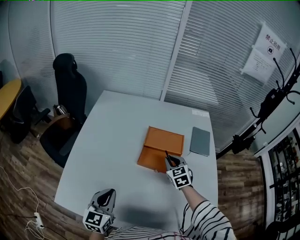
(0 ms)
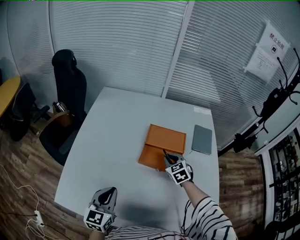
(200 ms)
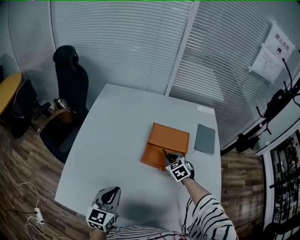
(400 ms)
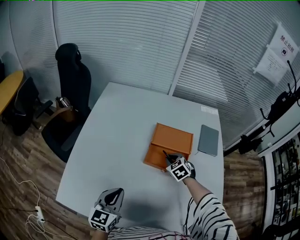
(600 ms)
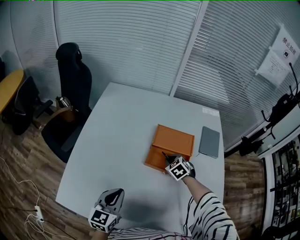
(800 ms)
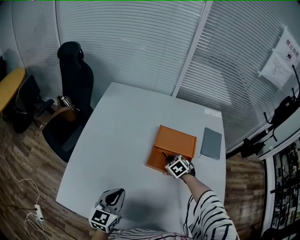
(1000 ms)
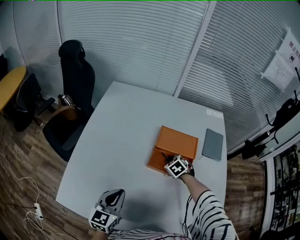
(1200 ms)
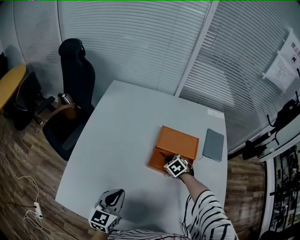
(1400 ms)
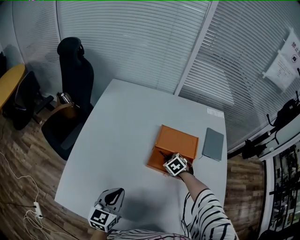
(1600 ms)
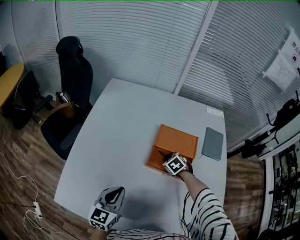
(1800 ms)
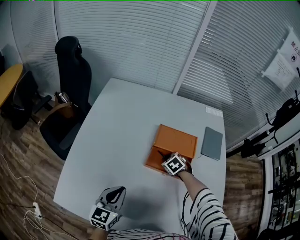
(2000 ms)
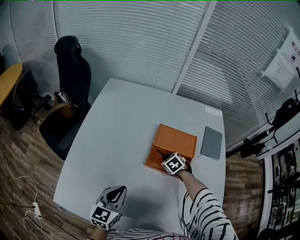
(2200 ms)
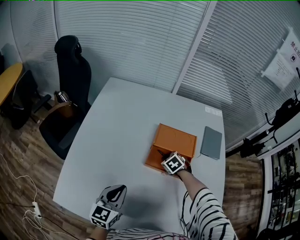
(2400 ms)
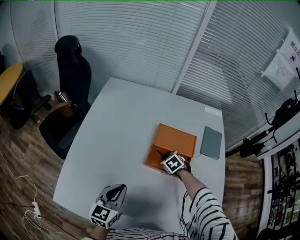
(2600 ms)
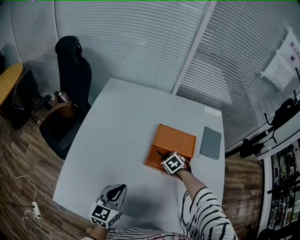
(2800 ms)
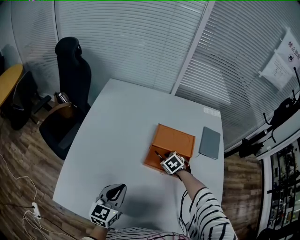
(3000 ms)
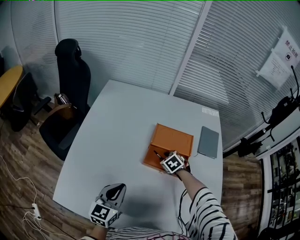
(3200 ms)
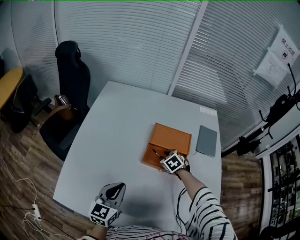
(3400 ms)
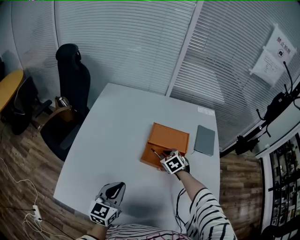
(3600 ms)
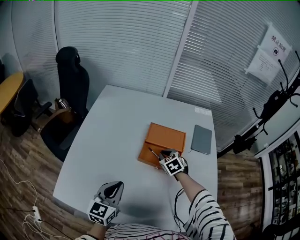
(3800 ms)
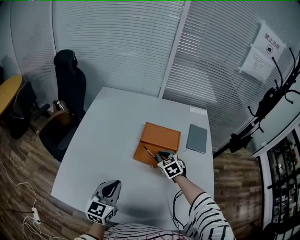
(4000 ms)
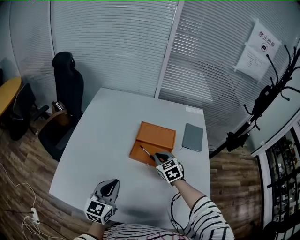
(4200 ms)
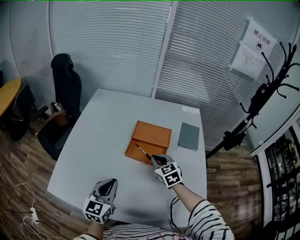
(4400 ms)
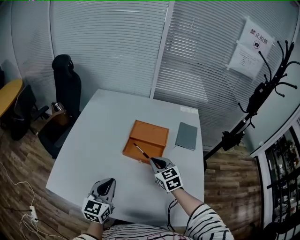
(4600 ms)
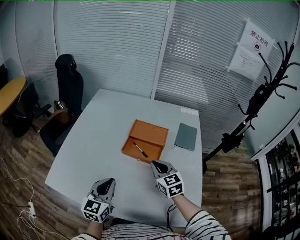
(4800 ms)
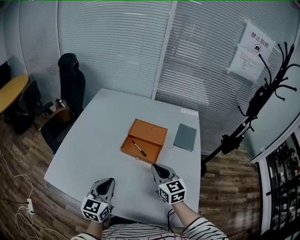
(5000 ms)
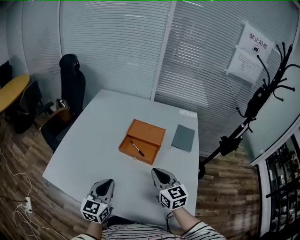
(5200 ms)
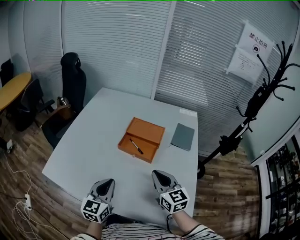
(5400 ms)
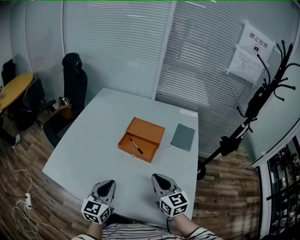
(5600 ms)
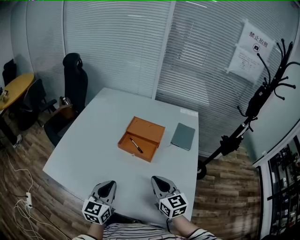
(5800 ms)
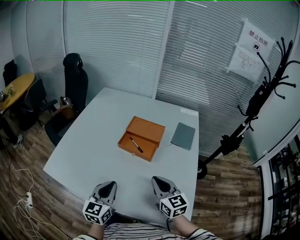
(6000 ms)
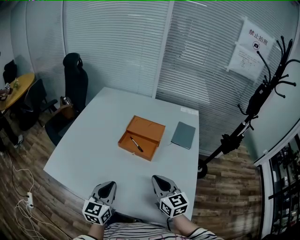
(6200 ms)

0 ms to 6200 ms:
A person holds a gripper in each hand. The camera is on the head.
0 ms to 1600 ms: The left gripper ends up approximately 5 cm from where it was. Meanwhile the right gripper shifts about 15 cm downward and forward, and turns by about 30 degrees.
1600 ms to 3200 ms: The grippers move only a little.
3200 ms to 4600 ms: The right gripper goes roughly 20 cm upward and backward, angles its fingers upward, by approximately 30 degrees, and closes up, while the left gripper goes approximately 10 cm backward, to the right and upward.
4600 ms to 6200 ms: The left gripper heads backward and to the right, covering approximately 10 cm; the right gripper travels backward by about 15 cm.

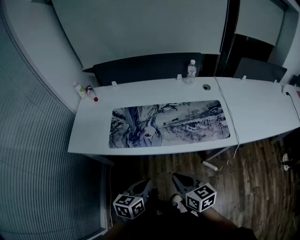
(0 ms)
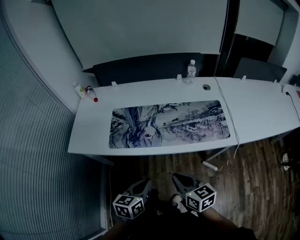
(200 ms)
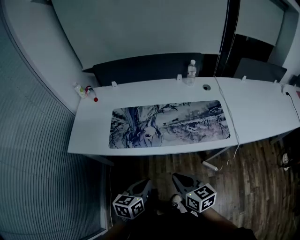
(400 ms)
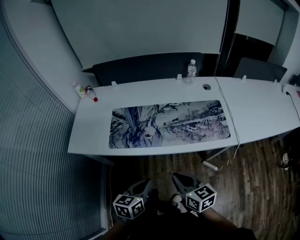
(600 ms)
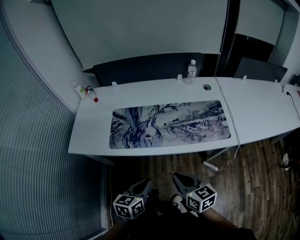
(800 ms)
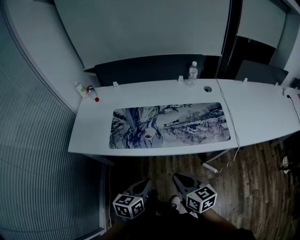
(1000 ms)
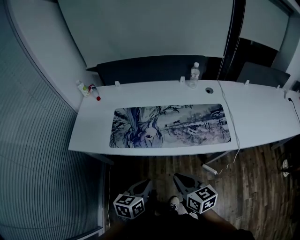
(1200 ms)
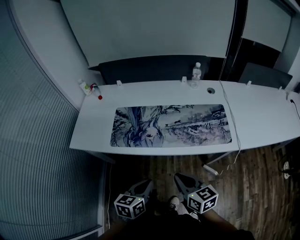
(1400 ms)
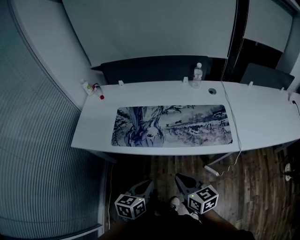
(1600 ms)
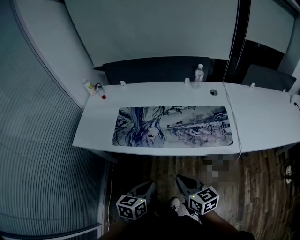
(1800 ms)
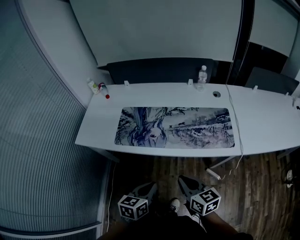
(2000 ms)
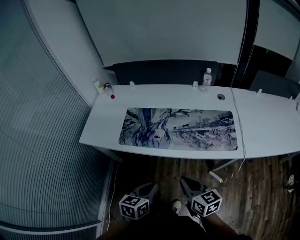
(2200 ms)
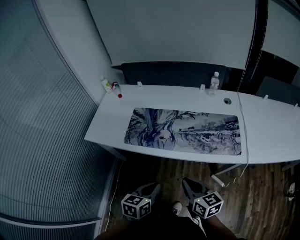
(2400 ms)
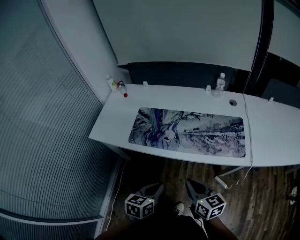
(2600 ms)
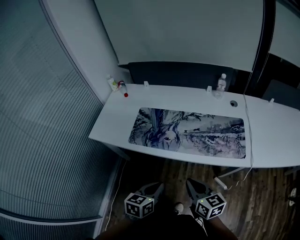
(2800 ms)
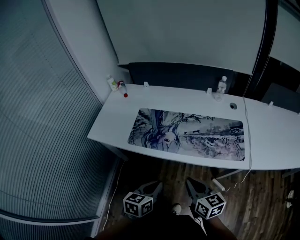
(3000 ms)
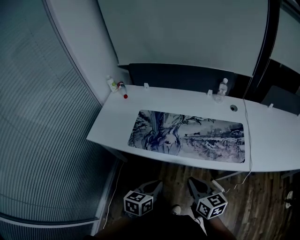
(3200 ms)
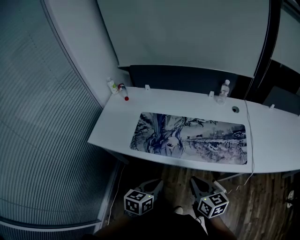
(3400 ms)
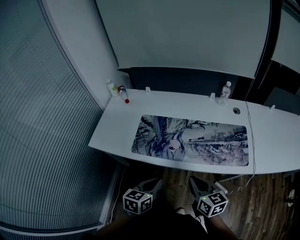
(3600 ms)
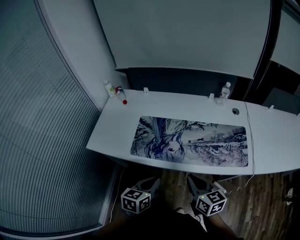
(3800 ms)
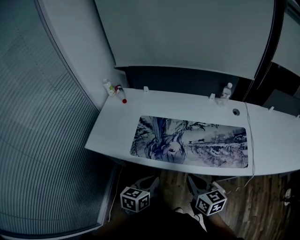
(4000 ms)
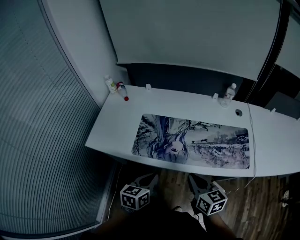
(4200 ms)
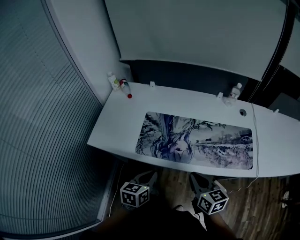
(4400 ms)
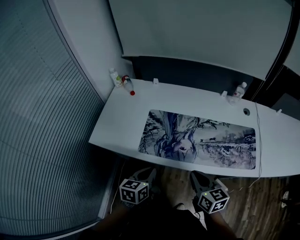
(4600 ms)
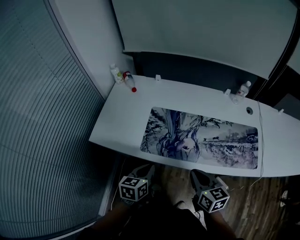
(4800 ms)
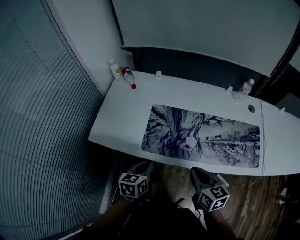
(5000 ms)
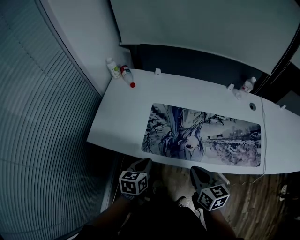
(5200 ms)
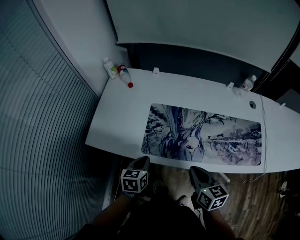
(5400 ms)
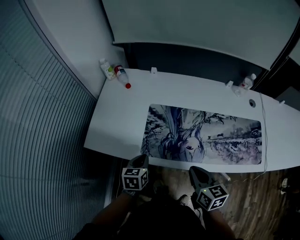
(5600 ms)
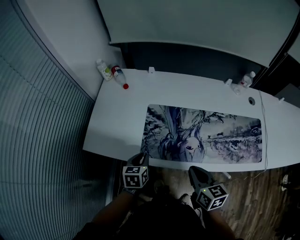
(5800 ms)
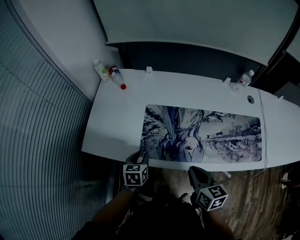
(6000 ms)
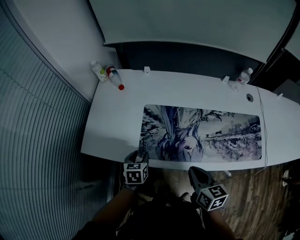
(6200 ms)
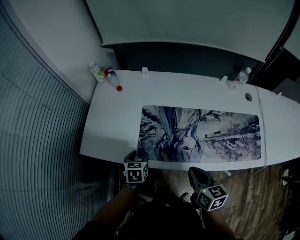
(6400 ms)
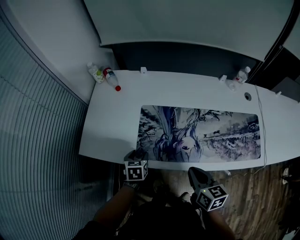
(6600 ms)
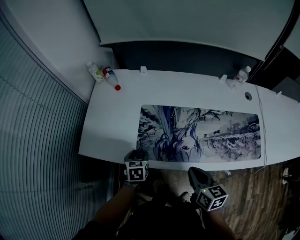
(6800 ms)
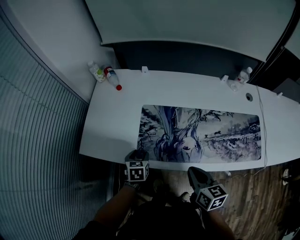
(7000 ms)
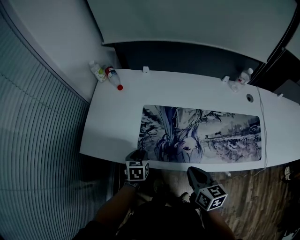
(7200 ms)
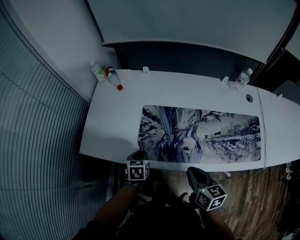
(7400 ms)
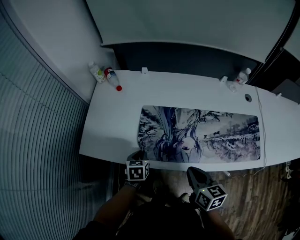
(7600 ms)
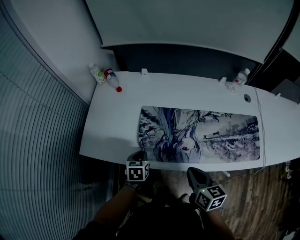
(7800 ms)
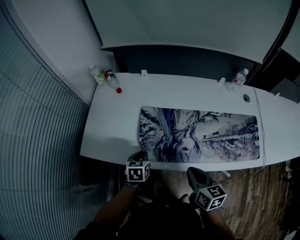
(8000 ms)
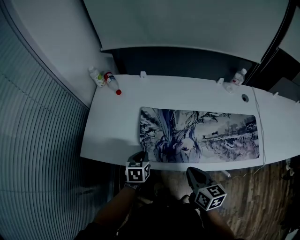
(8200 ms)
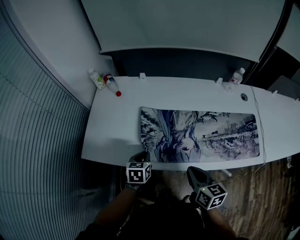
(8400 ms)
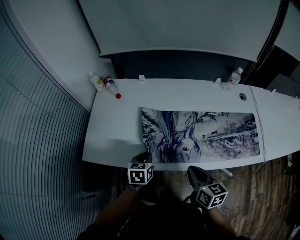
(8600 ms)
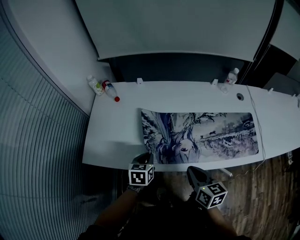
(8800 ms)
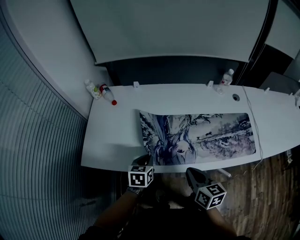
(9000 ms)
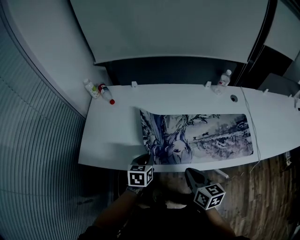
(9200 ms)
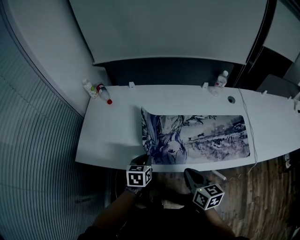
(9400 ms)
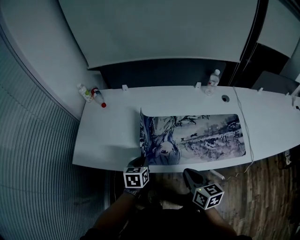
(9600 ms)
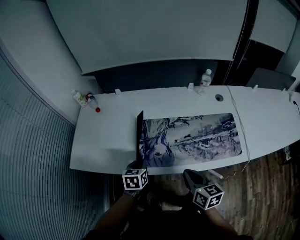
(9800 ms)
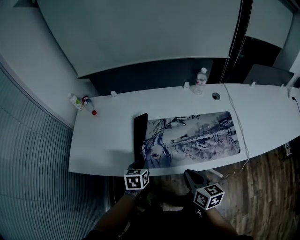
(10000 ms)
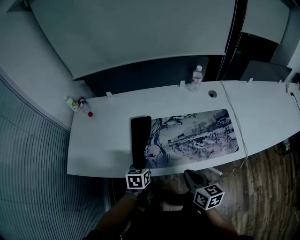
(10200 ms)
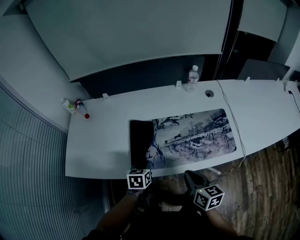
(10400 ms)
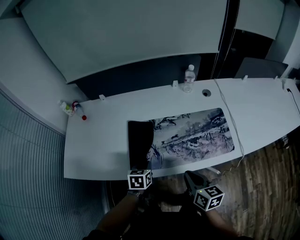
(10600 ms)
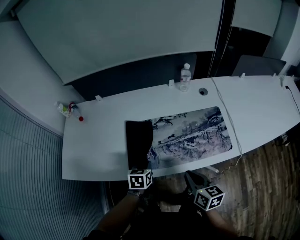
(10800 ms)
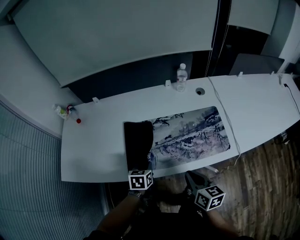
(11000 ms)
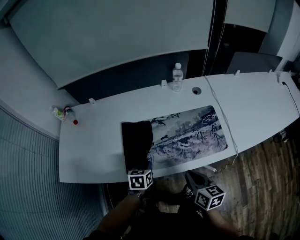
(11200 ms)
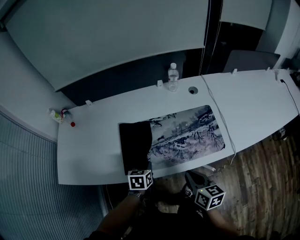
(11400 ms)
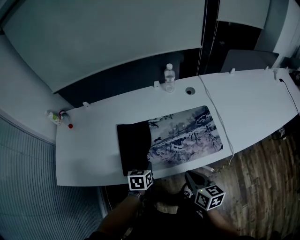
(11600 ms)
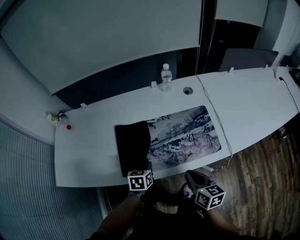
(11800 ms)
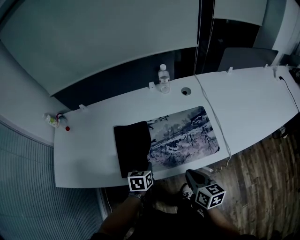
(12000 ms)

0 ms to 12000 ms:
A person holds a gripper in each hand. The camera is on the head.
0 ms to 3000 ms: The grippers move only a little.
3000 ms to 4400 ms: The two grippers go approximately 15 cm forward and to the left.
4400 ms to 6000 ms: The left gripper moves forward, downward and to the left, about 20 cm, and opens up, while the right gripper heads forward and to the left, covering about 10 cm.
6000 ms to 7600 ms: The left gripper opens, then closes again.
7600 ms to 9000 ms: The left gripper travels upward and to the right by about 10 cm.
9000 ms to 10400 ms: Both grippers move to the right, about 15 cm.
10400 ms to 12000 ms: The two grippers go roughly 15 cm to the right.

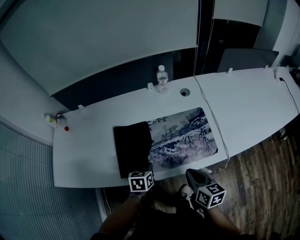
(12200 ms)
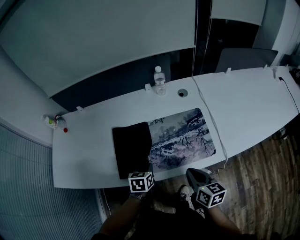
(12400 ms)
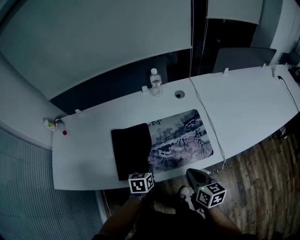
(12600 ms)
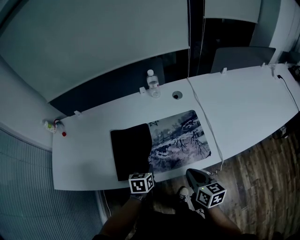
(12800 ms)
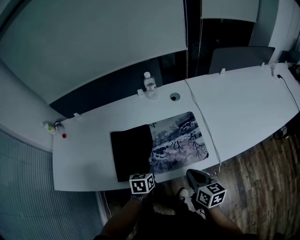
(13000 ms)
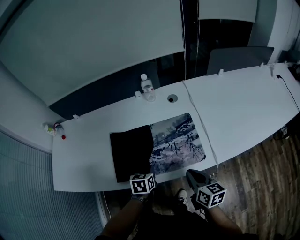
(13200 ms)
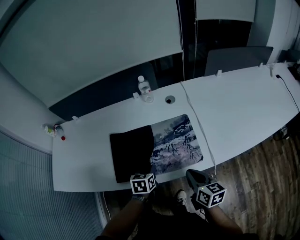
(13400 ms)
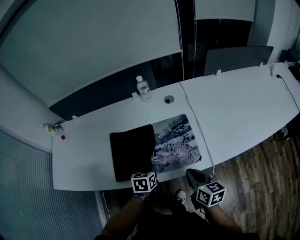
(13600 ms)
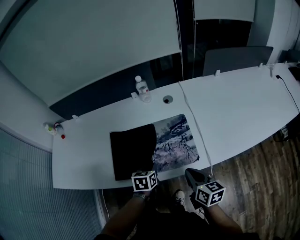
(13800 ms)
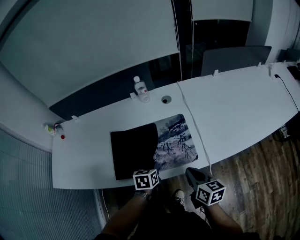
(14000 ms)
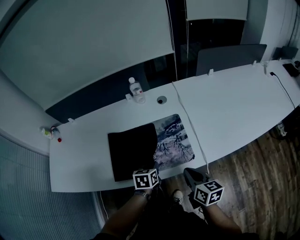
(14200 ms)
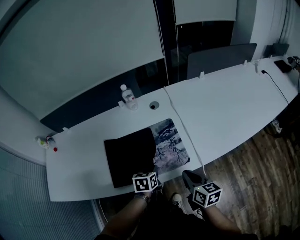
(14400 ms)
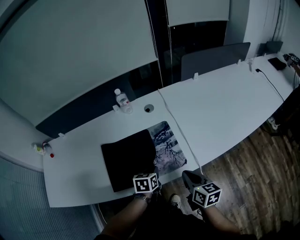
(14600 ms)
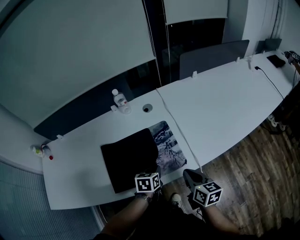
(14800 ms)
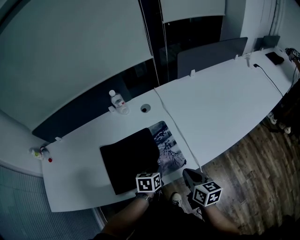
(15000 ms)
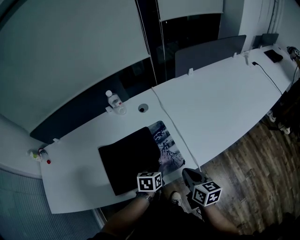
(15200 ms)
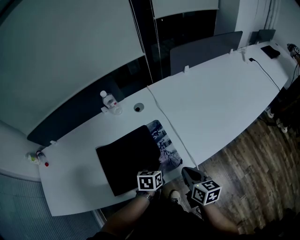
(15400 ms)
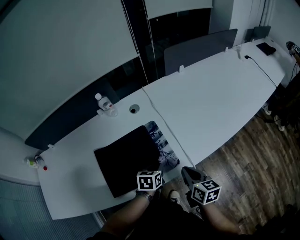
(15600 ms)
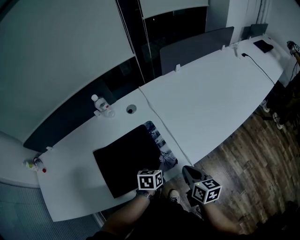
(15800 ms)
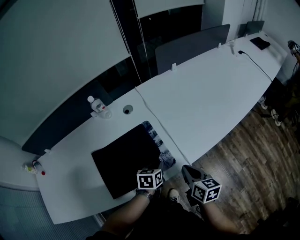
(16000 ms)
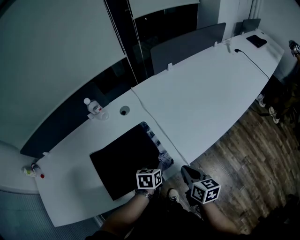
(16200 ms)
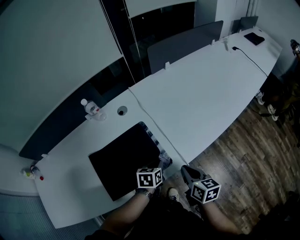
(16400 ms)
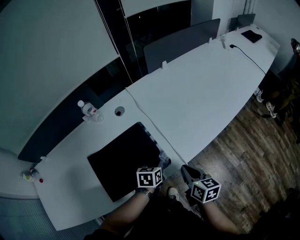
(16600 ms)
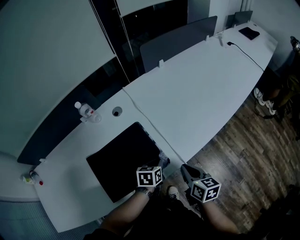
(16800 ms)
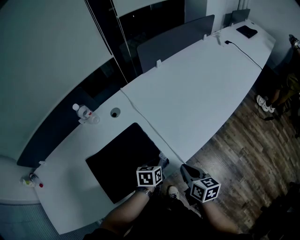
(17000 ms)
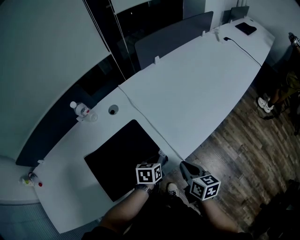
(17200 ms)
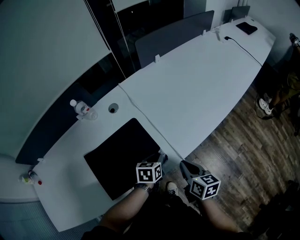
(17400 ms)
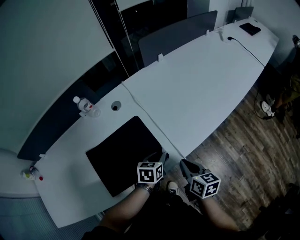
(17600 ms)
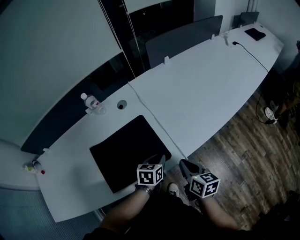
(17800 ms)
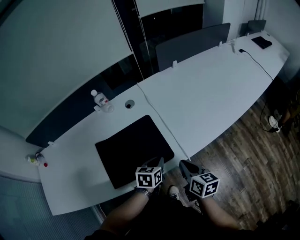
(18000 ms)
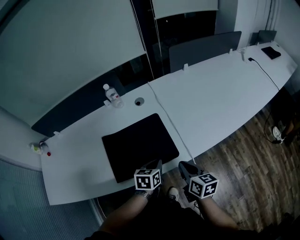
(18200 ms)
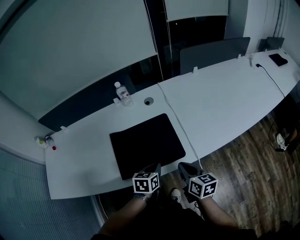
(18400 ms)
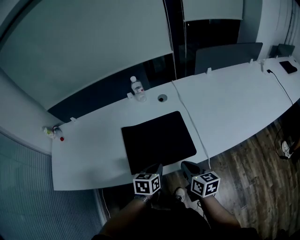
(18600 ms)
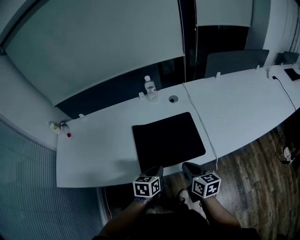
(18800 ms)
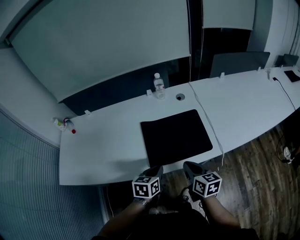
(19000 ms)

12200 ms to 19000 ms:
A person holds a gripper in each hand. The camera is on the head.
12200 ms to 13600 ms: Both grippers travel together to the right, some 10 cm.
13600 ms to 15000 ms: The right gripper goes roughly 5 cm to the right. Meanwhile the left gripper travels to the right by some 10 cm.
15000 ms to 16200 ms: Both grippers move to the right, roughly 5 cm.
16200 ms to 17600 ms: The grippers move only a little.
17600 ms to 19000 ms: The right gripper is displaced to the left by roughly 20 cm, and changes its angle by roughly 30 degrees; the left gripper goes roughly 30 cm to the left and backward, and changes its angle by some 20 degrees.
